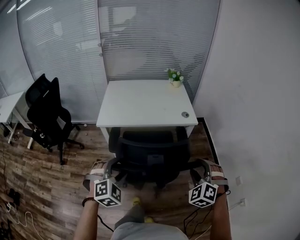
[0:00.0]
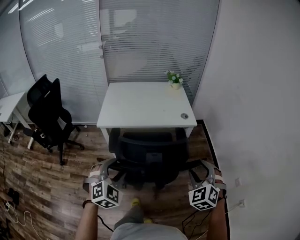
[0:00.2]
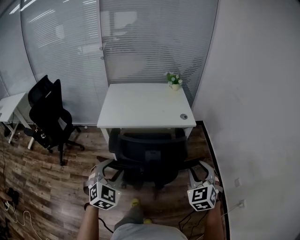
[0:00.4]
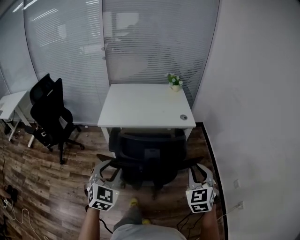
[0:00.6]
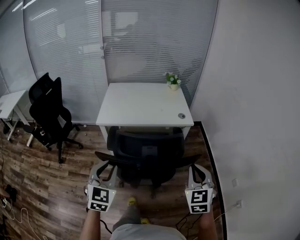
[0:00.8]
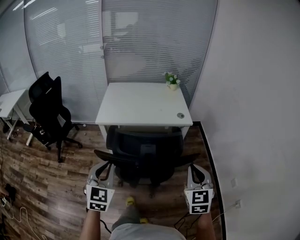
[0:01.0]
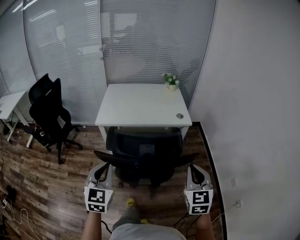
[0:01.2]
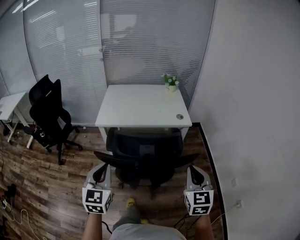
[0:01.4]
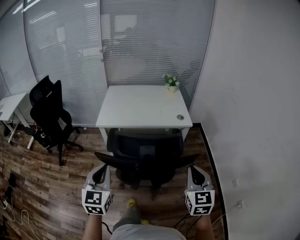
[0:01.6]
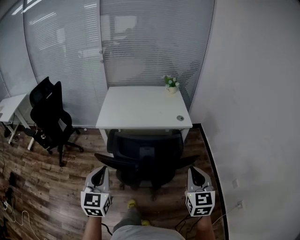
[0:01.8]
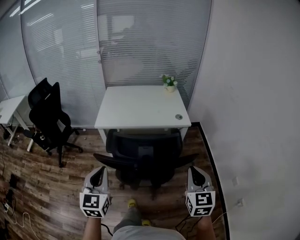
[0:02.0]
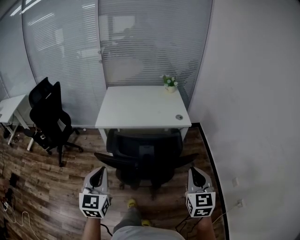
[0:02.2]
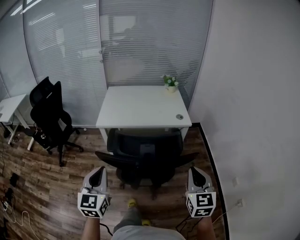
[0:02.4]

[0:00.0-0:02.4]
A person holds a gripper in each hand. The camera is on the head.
0:00.0 to 0:01.2: Both grippers travel together backward and upward, approximately 10 cm. The left gripper rotates around the line of its fingers by some 40 degrees, counterclockwise from behind, and closes up; the right gripper rolls clockwise, seen from behind, by roughly 50 degrees, and closes up.
0:01.2 to 0:02.4: The grippers move only a little.

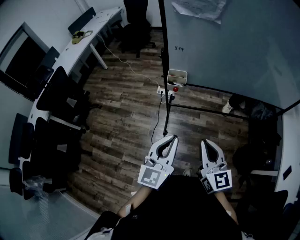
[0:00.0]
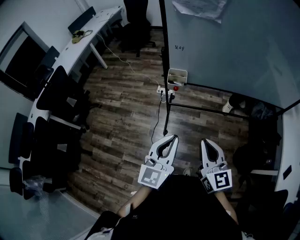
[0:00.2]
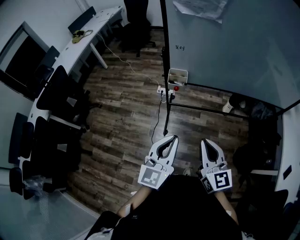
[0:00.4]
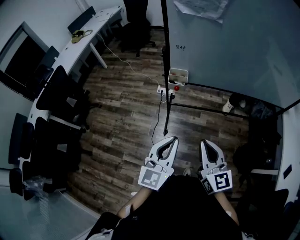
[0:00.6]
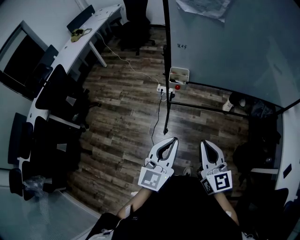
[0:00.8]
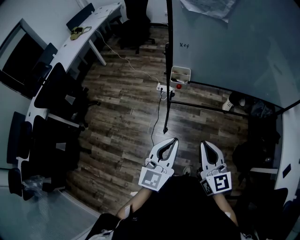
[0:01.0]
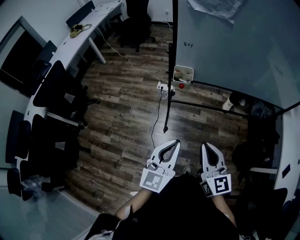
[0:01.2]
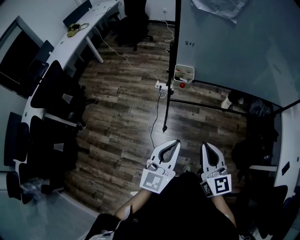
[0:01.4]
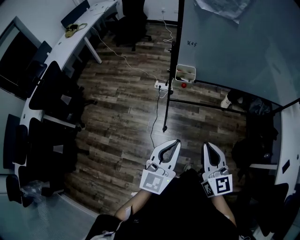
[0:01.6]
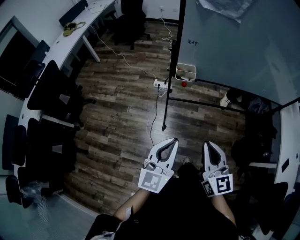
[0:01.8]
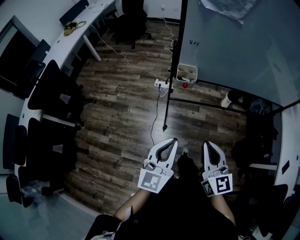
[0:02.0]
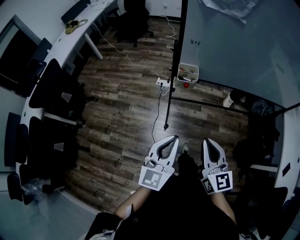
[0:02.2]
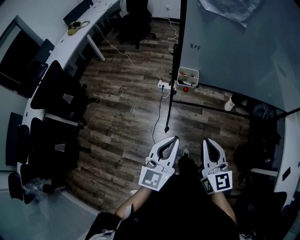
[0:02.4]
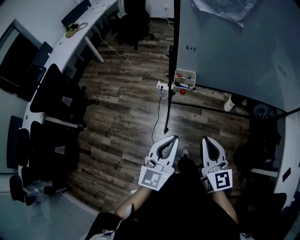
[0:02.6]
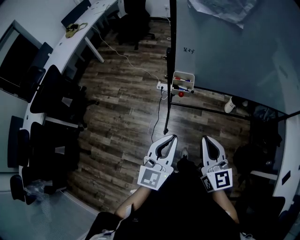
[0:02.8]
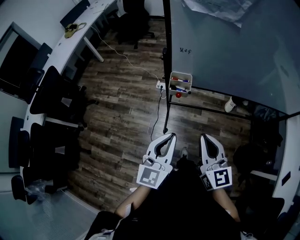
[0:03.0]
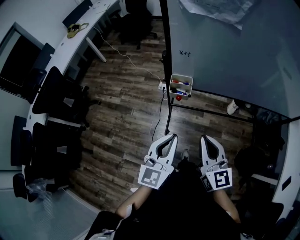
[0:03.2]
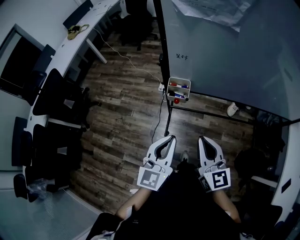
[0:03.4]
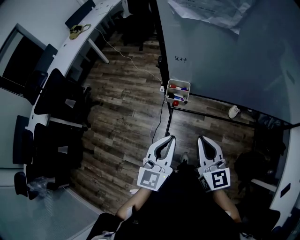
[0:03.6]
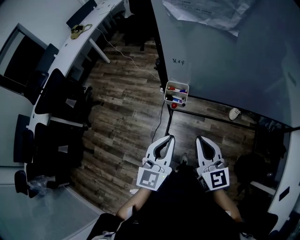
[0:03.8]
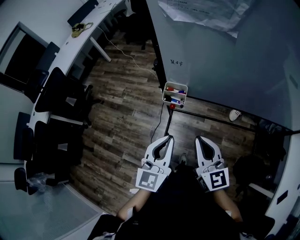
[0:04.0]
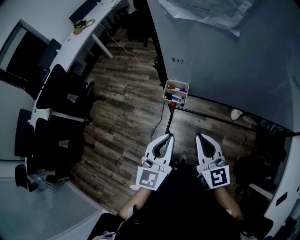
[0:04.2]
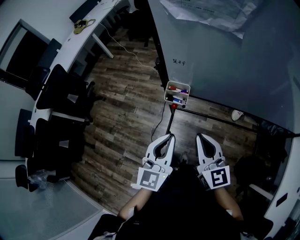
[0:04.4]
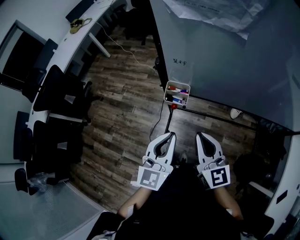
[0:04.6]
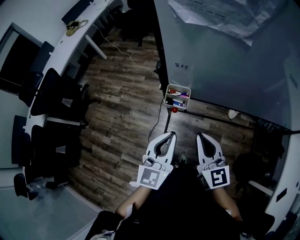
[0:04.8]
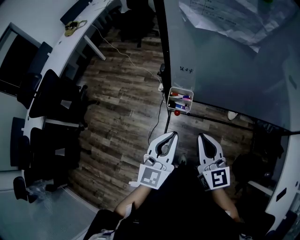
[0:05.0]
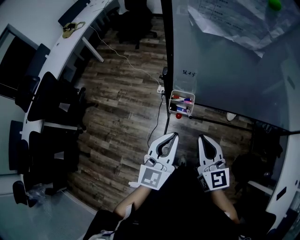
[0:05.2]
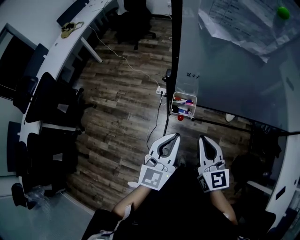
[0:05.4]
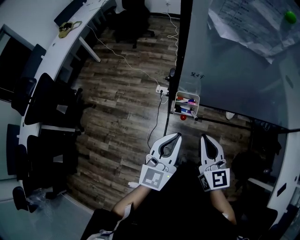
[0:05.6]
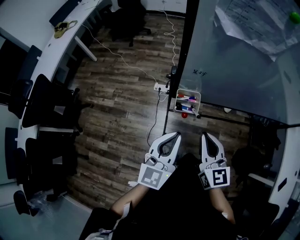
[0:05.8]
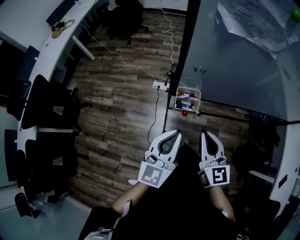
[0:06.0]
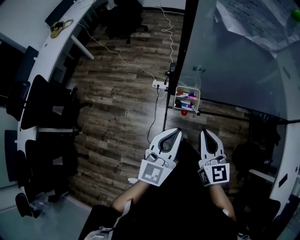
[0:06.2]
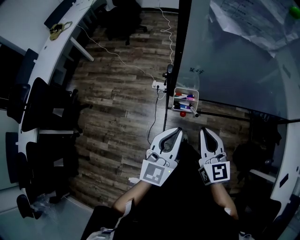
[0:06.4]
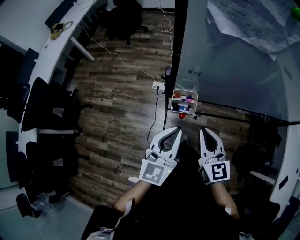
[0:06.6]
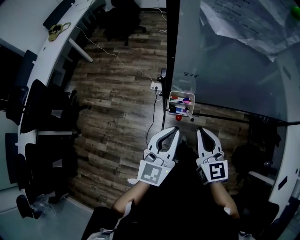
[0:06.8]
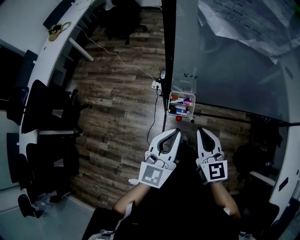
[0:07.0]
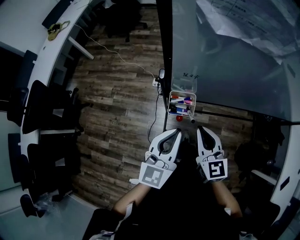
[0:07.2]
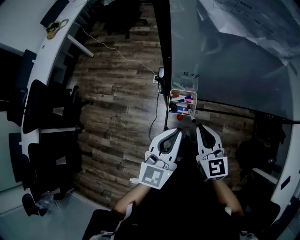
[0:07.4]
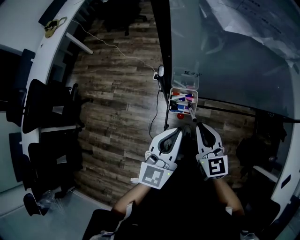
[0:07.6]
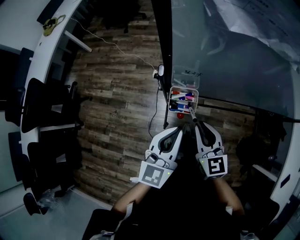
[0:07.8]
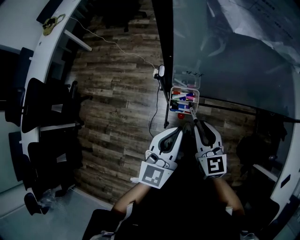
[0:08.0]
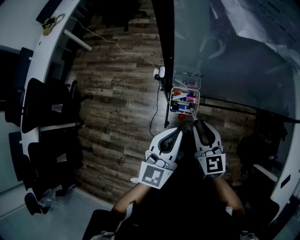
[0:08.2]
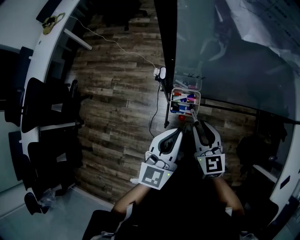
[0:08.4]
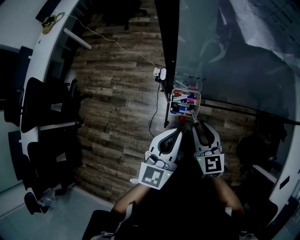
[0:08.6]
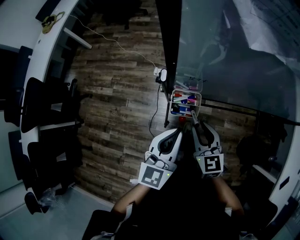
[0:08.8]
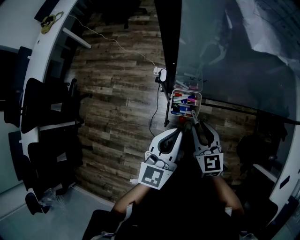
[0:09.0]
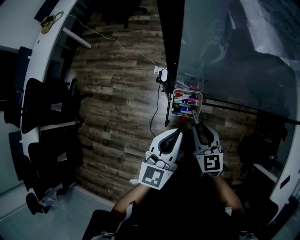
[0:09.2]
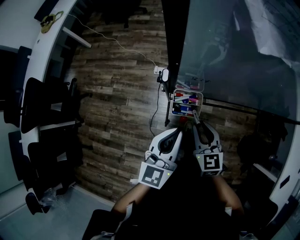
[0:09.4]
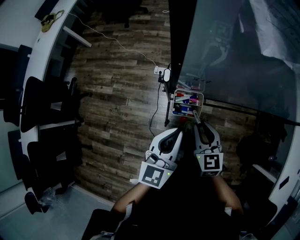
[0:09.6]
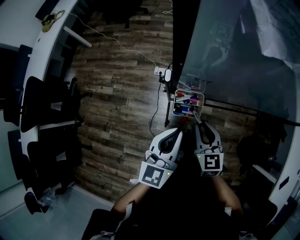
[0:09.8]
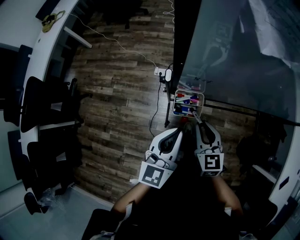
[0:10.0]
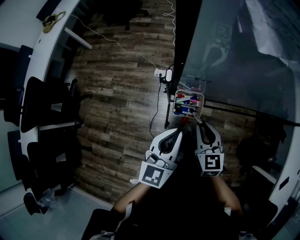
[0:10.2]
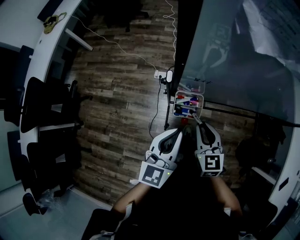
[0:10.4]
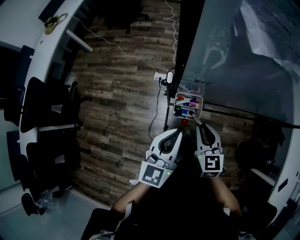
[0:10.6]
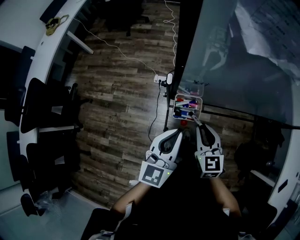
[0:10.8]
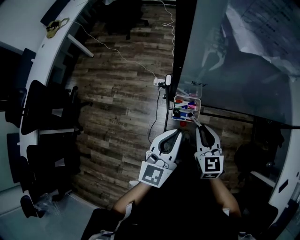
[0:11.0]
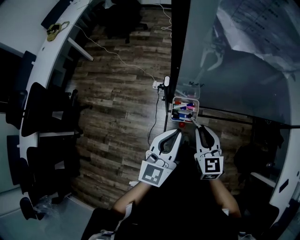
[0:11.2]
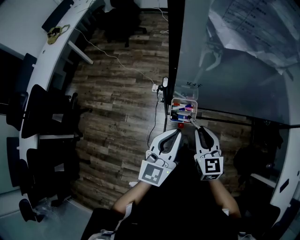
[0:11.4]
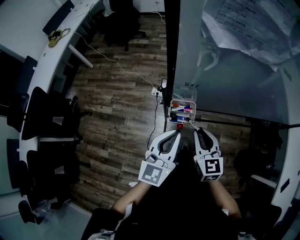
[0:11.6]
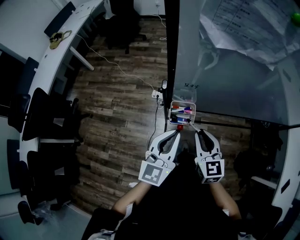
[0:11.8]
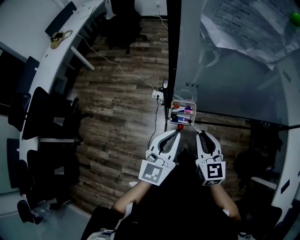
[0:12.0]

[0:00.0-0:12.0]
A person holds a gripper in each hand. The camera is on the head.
0:00.0 to 0:01.6: Both grippers move to the left, approximately 5 cm.
0:01.6 to 0:03.0: The grippers both shift forward by roughly 10 cm.
0:03.0 to 0:04.4: The left gripper shifts about 10 cm forward and to the right; the right gripper moves forward, approximately 10 cm.
0:04.4 to 0:06.0: The left gripper moves to the left and forward, some 10 cm, while the right gripper travels to the left by roughly 5 cm.
0:06.0 to 0:07.6: The left gripper changes place by approximately 5 cm; the right gripper shifts approximately 10 cm forward and downward.
0:07.6 to 0:09.0: The right gripper moves some 5 cm.
0:09.0 to 0:10.4: The grippers make only small movements.
0:10.4 to 0:12.0: The right gripper shifts about 5 cm upward.

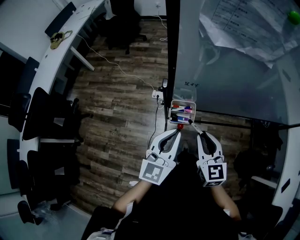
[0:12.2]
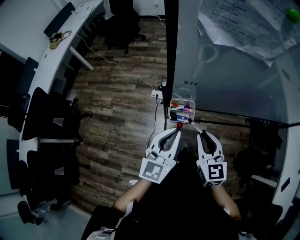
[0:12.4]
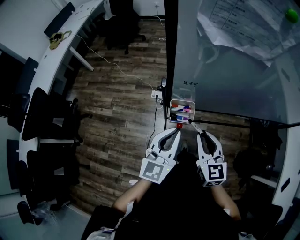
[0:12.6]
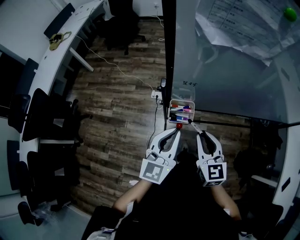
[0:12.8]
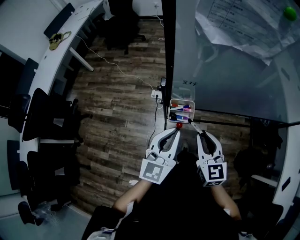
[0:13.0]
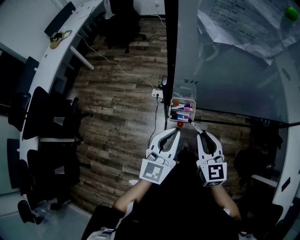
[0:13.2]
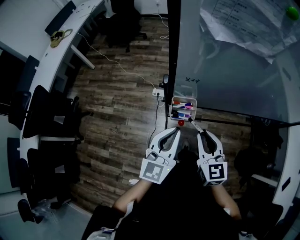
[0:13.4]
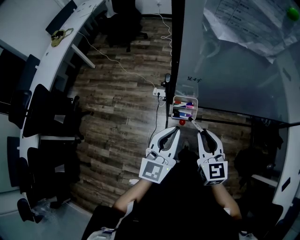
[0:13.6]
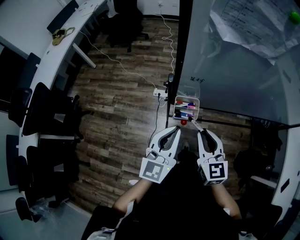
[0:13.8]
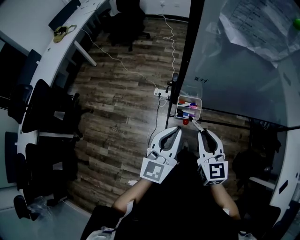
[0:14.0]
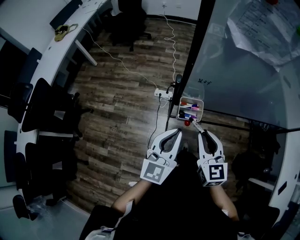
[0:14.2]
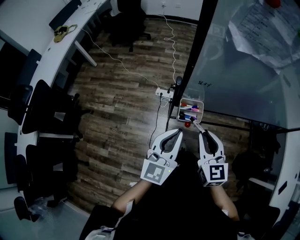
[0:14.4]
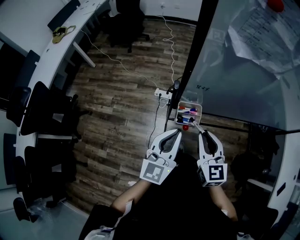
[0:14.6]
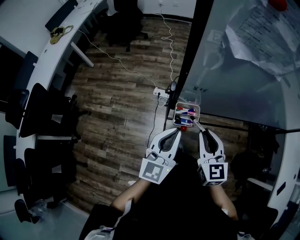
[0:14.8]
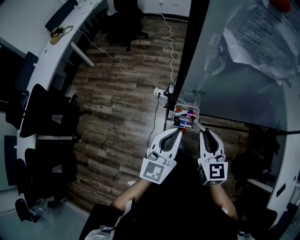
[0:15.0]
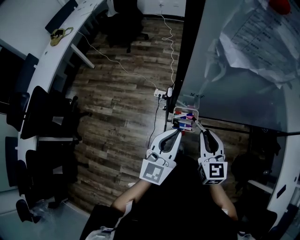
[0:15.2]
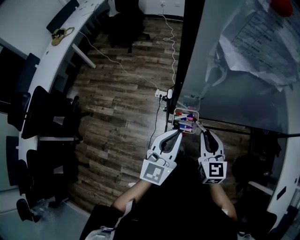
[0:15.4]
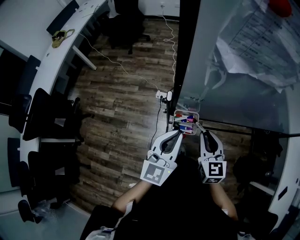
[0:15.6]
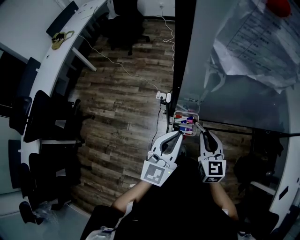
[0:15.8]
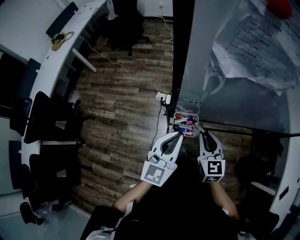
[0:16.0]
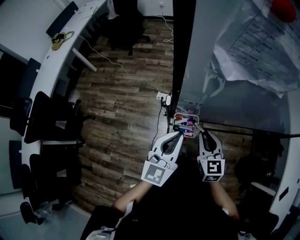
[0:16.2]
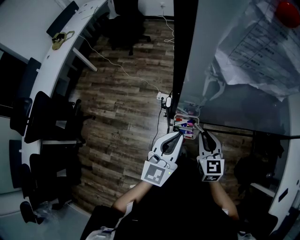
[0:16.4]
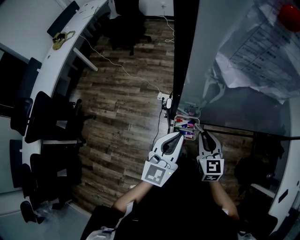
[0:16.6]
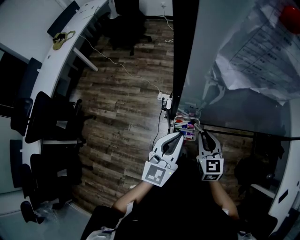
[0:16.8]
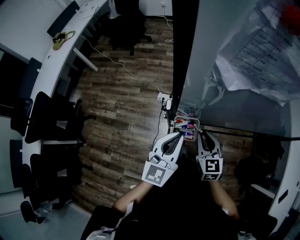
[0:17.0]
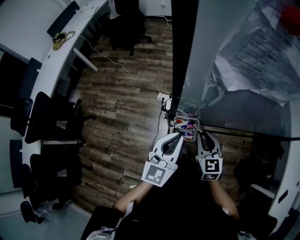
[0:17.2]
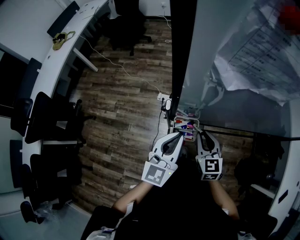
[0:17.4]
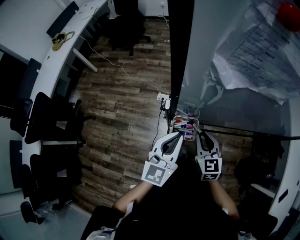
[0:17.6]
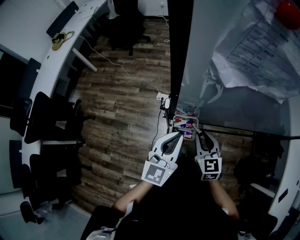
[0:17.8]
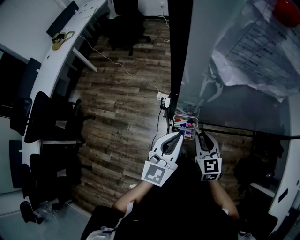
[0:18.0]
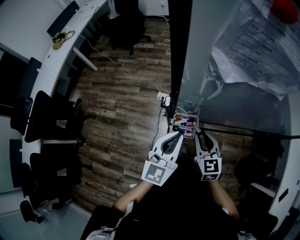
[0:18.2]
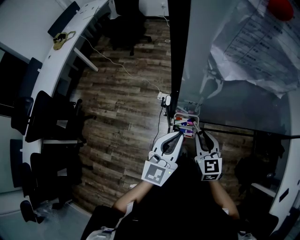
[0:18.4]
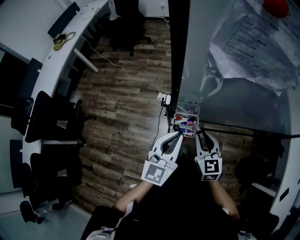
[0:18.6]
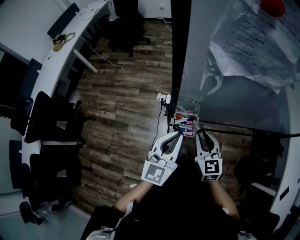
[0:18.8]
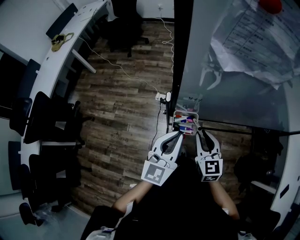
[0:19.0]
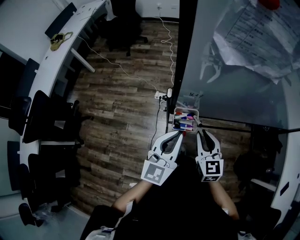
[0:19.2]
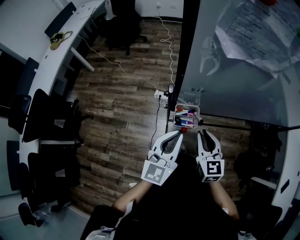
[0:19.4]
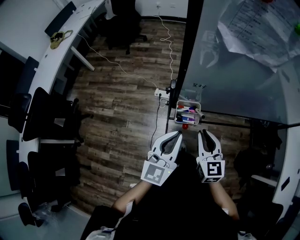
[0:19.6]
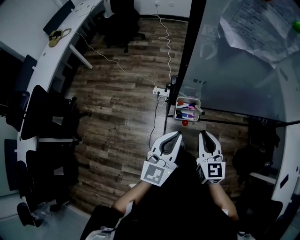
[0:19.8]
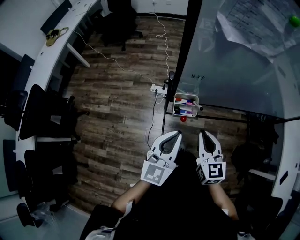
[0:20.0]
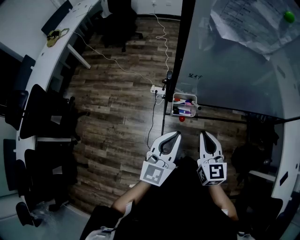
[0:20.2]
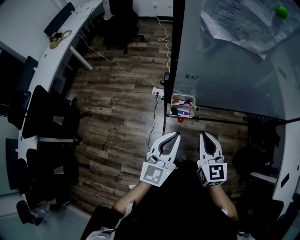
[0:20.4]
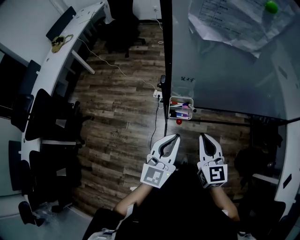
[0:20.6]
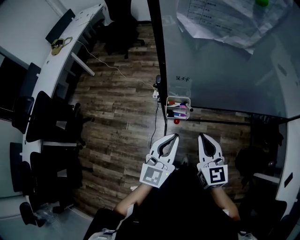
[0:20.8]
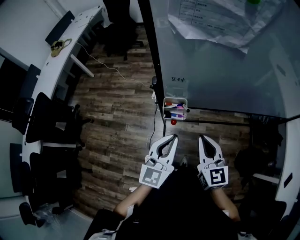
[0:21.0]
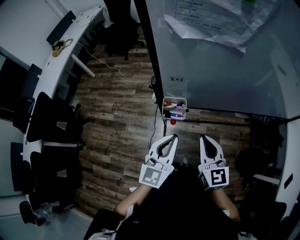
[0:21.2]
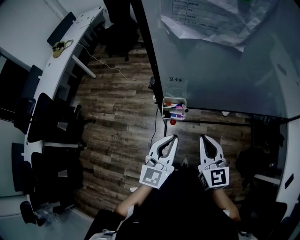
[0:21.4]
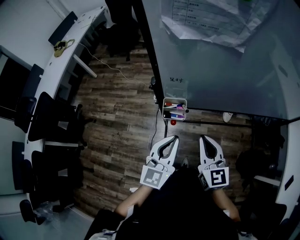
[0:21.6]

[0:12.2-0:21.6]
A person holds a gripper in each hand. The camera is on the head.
0:12.2 to 0:13.8: There are only small adjustments of the grippers.
0:13.8 to 0:15.4: The two grippers go roughly 5 cm forward.
0:15.4 to 0:17.0: The right gripper ends up about 5 cm from where it was.
0:17.0 to 0:18.4: The grippers stay close to where they were, moving slightly.
0:18.4 to 0:20.0: The grippers both shift backward by approximately 10 cm.
0:20.0 to 0:21.6: The grippers both shift to the right by approximately 5 cm.
